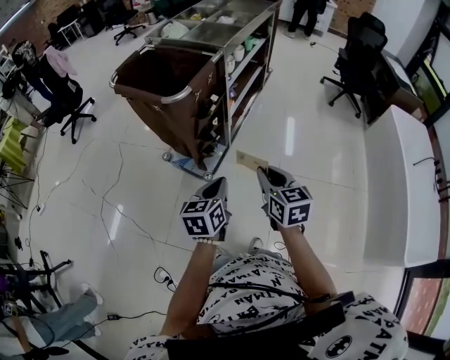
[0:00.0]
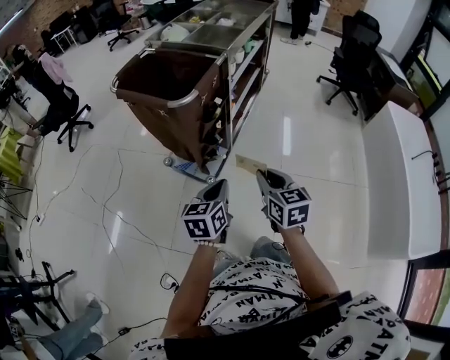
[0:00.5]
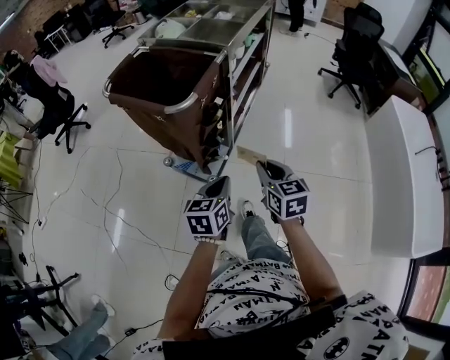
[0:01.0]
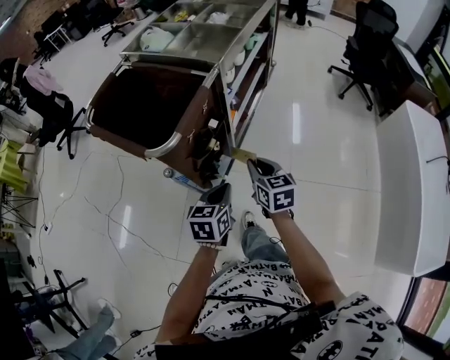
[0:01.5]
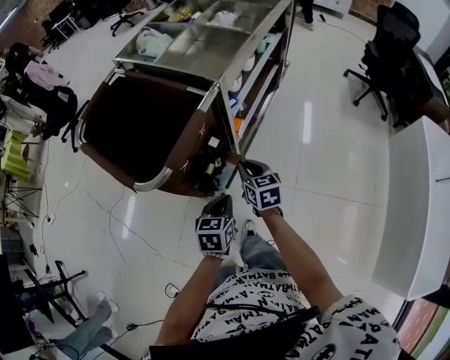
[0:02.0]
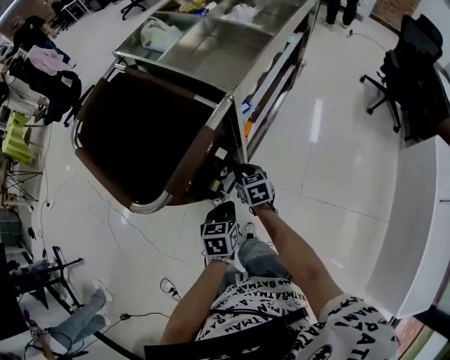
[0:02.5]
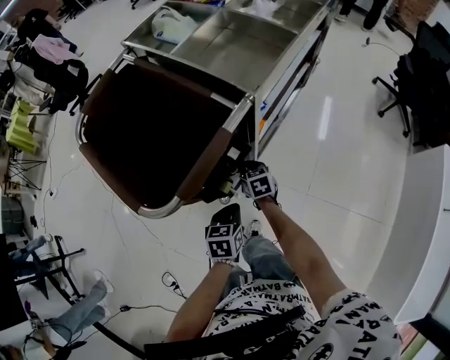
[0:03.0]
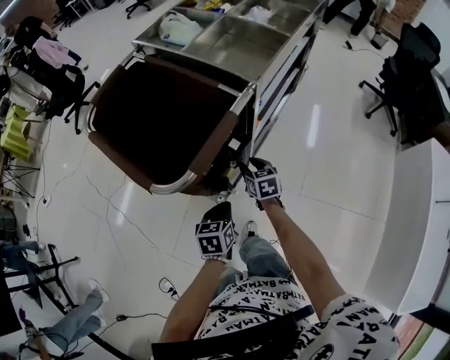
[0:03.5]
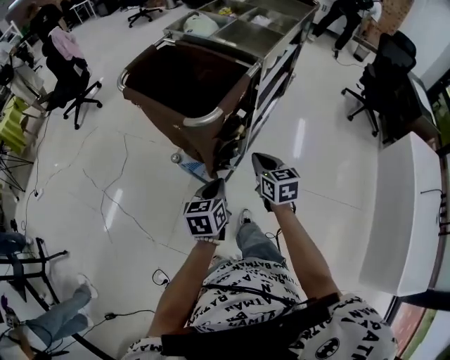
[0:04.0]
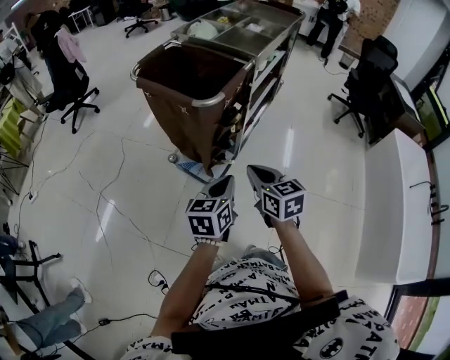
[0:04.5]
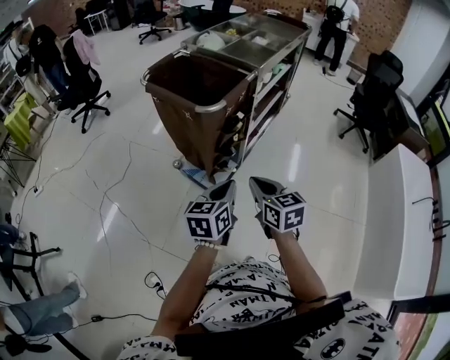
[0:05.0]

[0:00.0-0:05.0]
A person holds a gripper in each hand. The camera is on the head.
0:00.0 to 0:02.5: Both grippers move forward and downward, roughly 40 cm. The left gripper rotates approximately 20 degrees; the right gripper swivels some 20 degrees.
0:02.5 to 0:05.0: Both grippers move backward and upward, some 40 cm. The right gripper opens, then closes once more; the left gripper changes its angle by approximately 30 degrees.

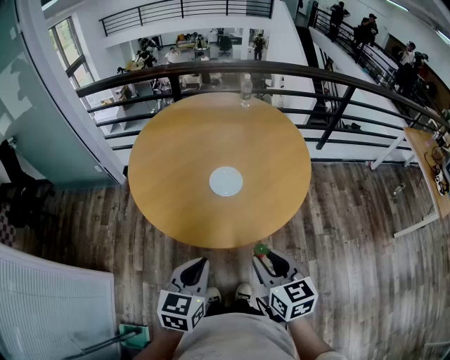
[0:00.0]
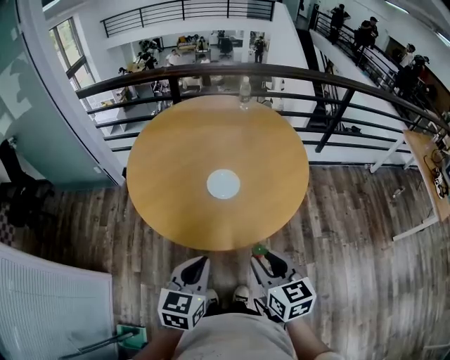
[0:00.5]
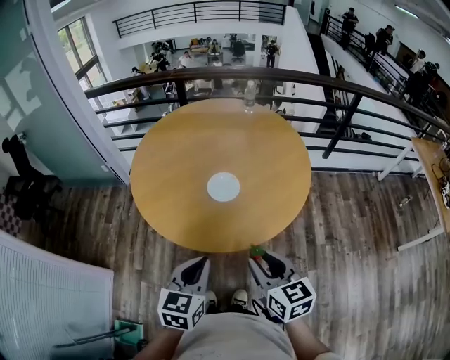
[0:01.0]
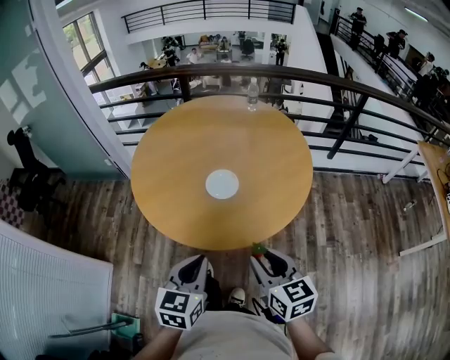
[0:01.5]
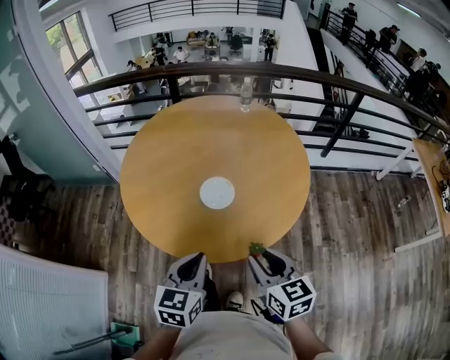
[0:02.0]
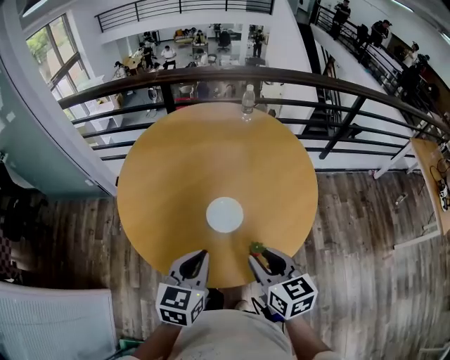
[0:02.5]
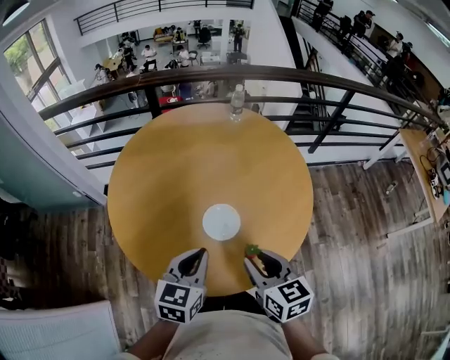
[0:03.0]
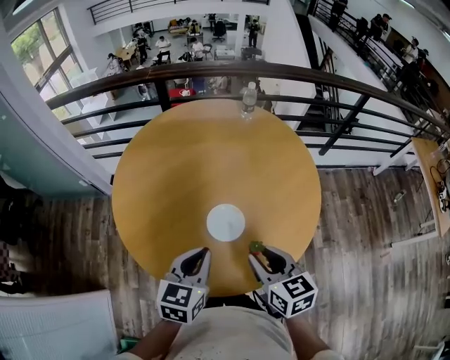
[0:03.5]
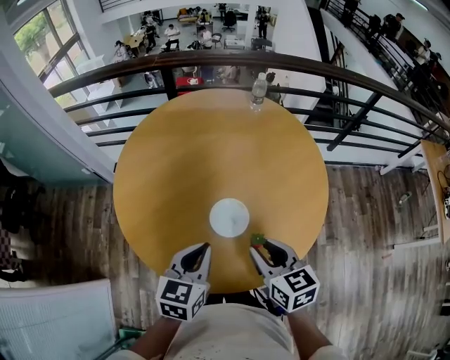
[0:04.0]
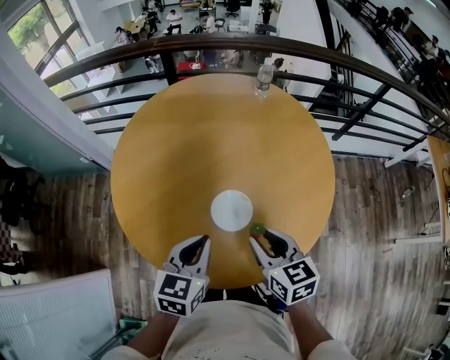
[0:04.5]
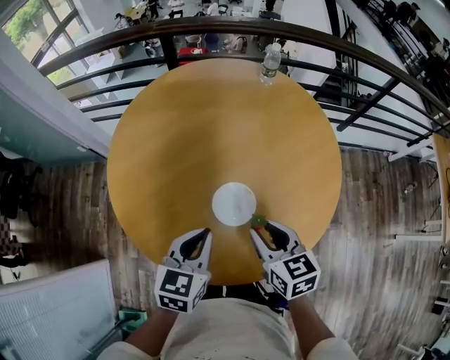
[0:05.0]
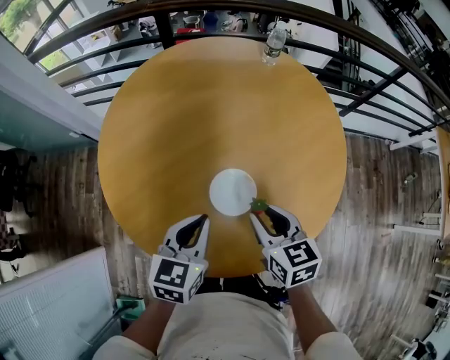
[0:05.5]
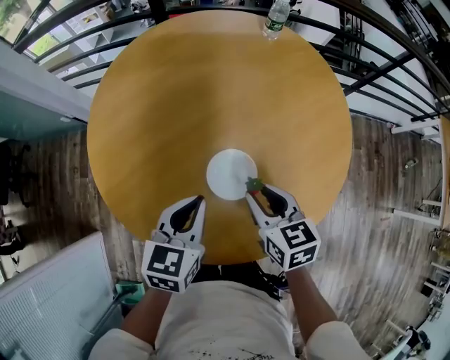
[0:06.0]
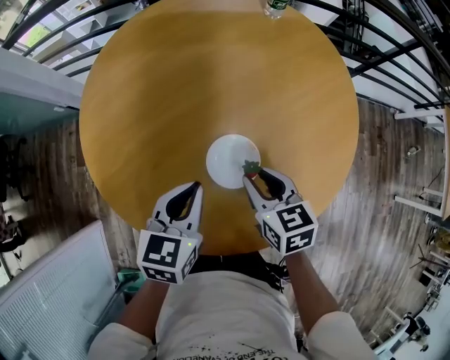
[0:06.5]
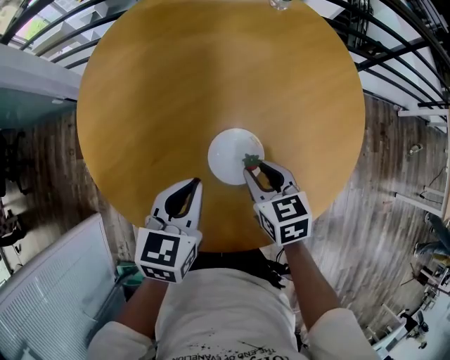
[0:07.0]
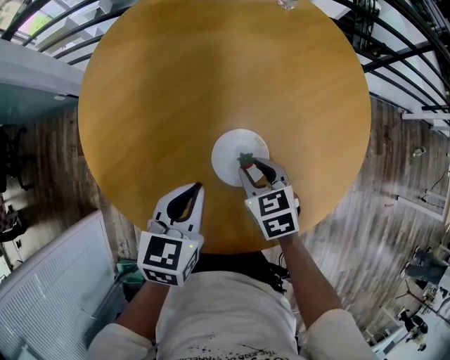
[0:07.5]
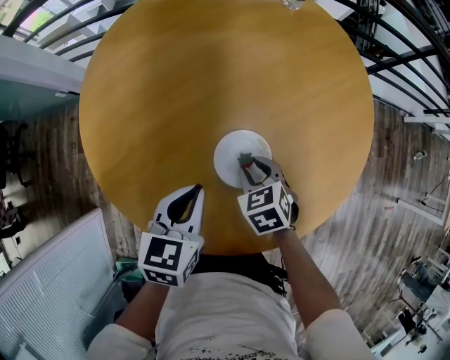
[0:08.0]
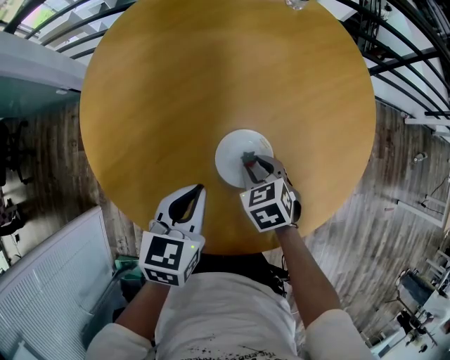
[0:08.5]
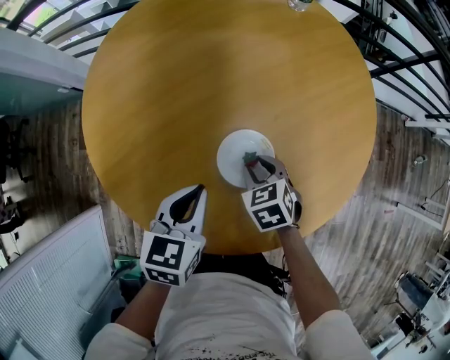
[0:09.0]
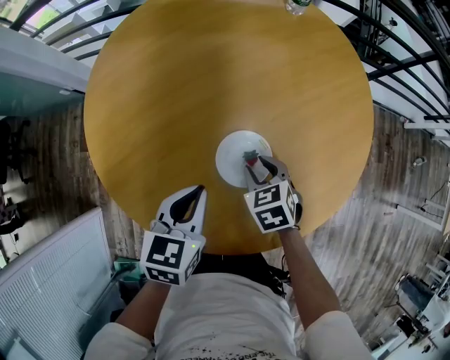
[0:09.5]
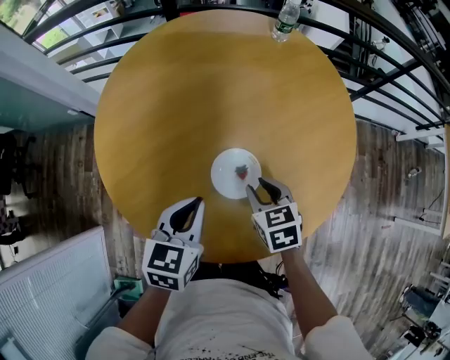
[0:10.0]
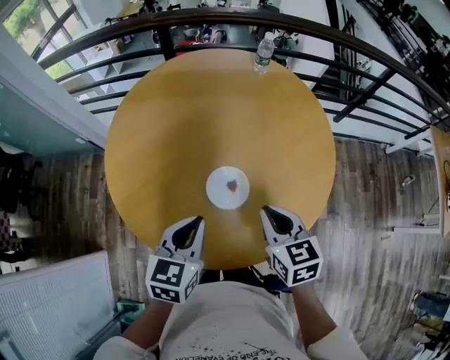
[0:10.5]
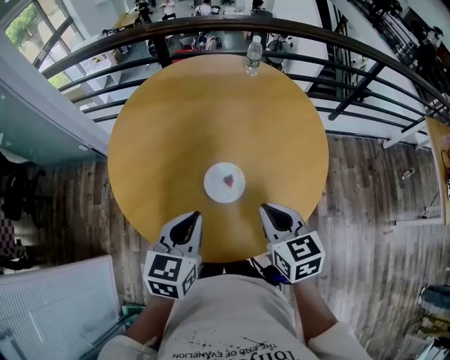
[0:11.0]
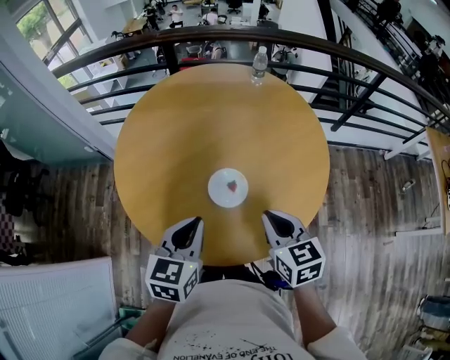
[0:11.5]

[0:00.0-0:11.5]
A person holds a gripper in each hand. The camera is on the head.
0:00.0 to 0:02.0: Both grippers move forward, roughly 5 cm.
0:02.0 to 0:04.0: Both grippers move forward, approximately 15 cm.
0:04.0 to 0:06.0: The left gripper is displaced forward and downward by roughly 10 cm. The right gripper travels downward and forward by approximately 15 cm.
0:06.0 to 0:07.5: The right gripper moves downward, approximately 10 cm.
0:07.5 to 0:09.5: The grippers make only small movements.
0:09.5 to 0:11.5: The right gripper moves upward and backward, approximately 25 cm, changes its angle by approximately 30 degrees, and closes, while the left gripper shifts approximately 15 cm upward and backward.

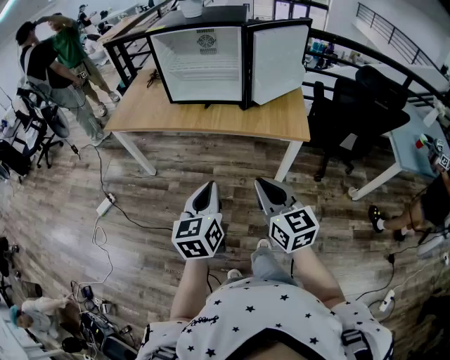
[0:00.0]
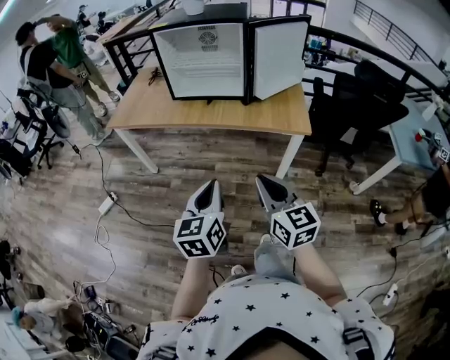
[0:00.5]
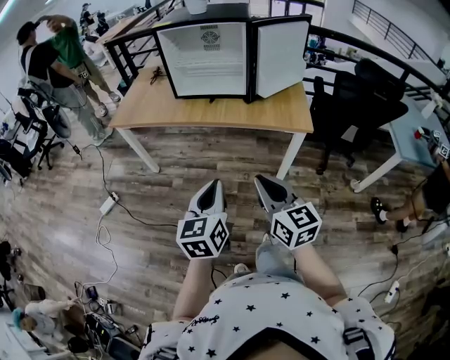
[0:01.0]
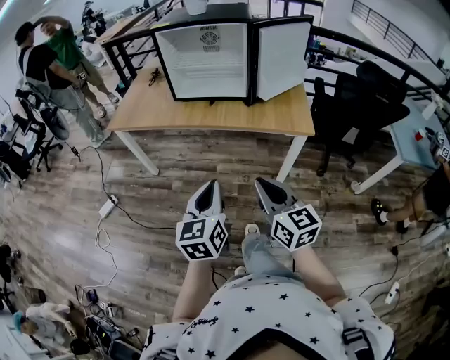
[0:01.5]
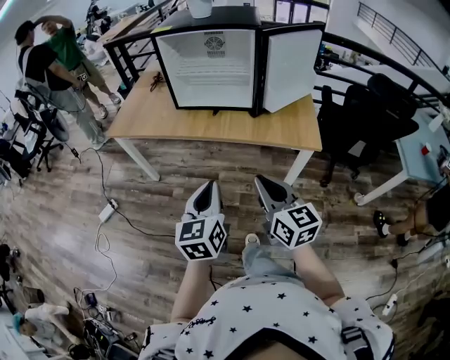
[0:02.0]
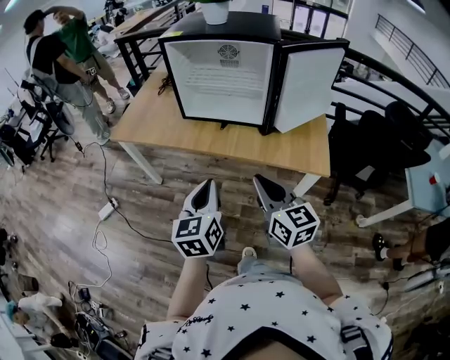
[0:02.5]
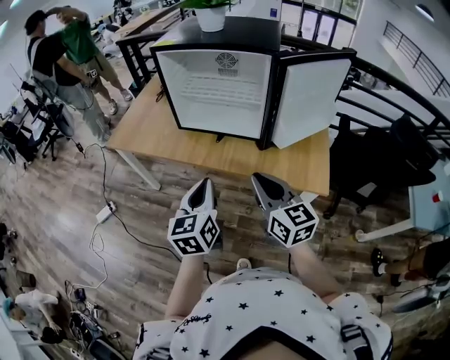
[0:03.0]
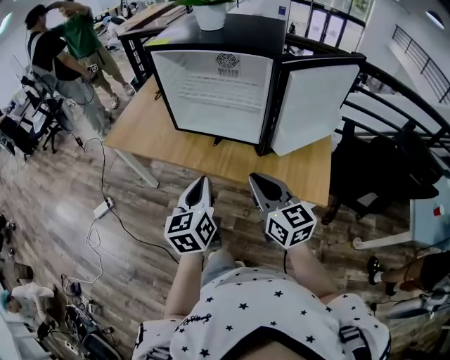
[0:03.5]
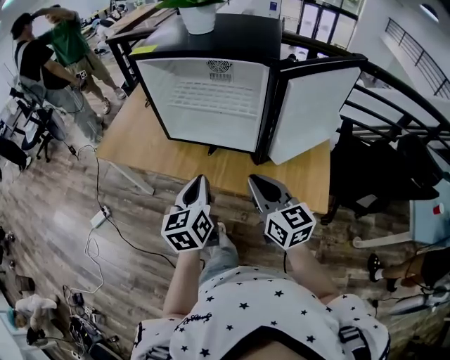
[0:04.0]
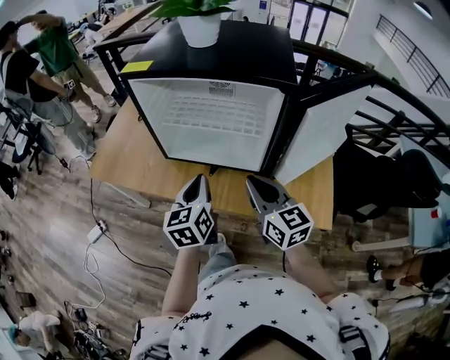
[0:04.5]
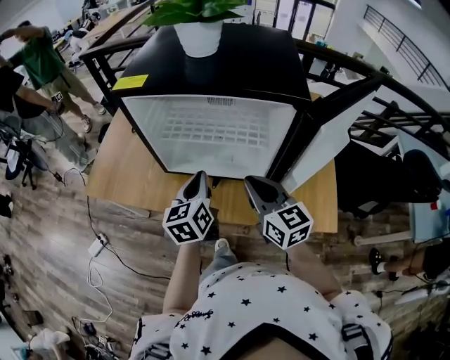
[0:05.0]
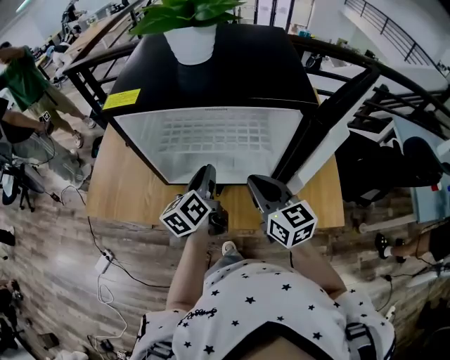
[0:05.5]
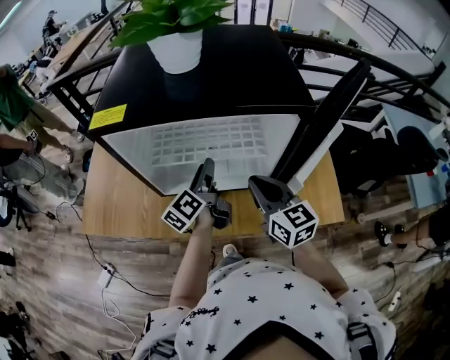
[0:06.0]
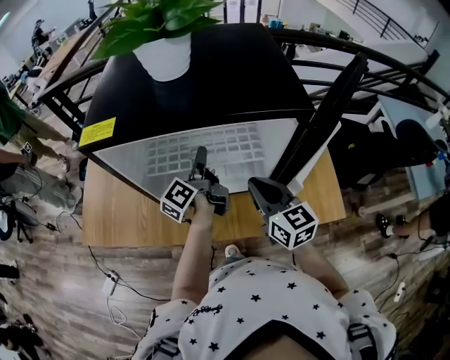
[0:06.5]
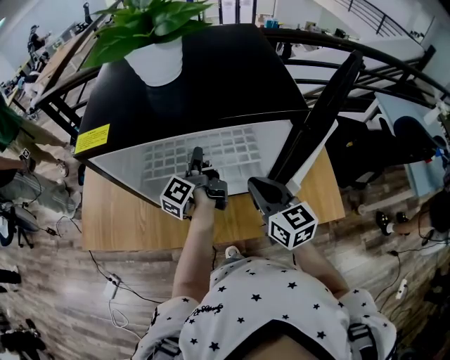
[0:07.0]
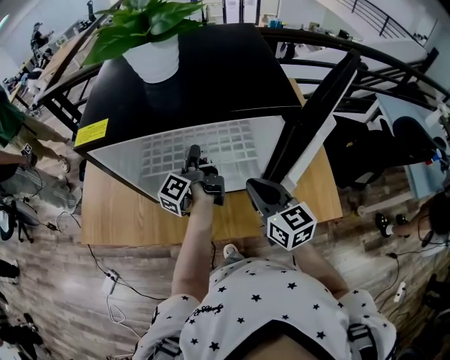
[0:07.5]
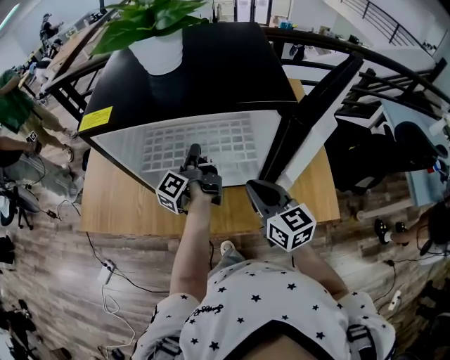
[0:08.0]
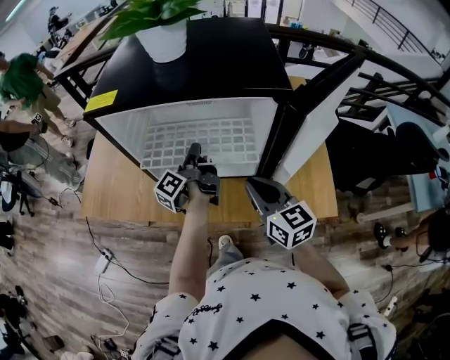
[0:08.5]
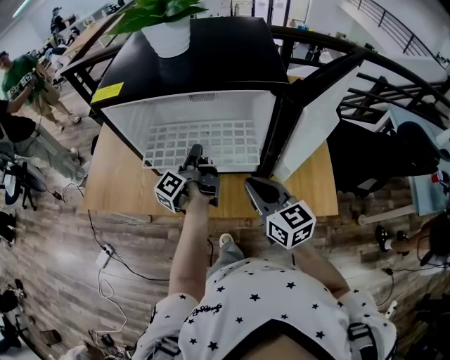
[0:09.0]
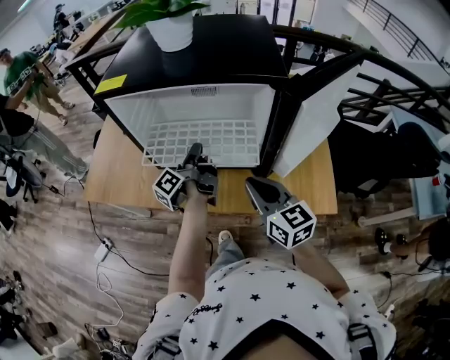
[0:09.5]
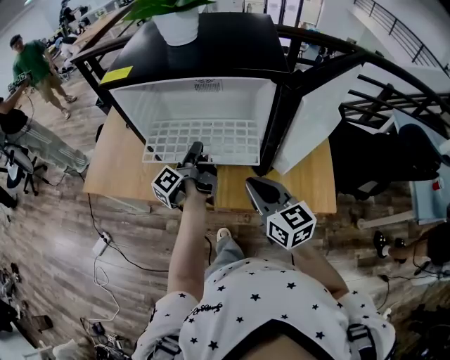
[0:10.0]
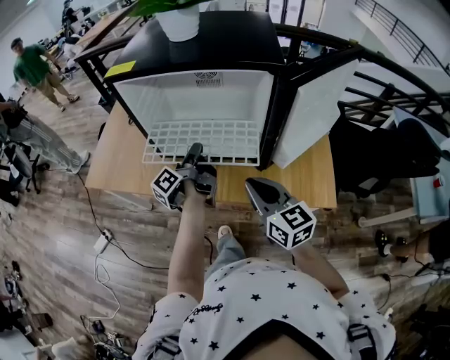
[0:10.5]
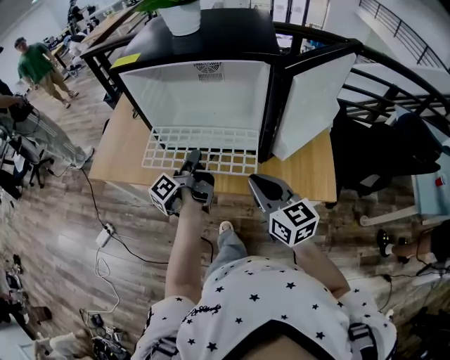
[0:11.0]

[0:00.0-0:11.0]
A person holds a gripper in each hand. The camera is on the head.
0:00.0 to 0:02.0: Both grippers travel together forward, about 5 cm.
0:02.0 to 0:03.5: Both grippers move forward, roughly 20 cm.
0:03.5 to 0:05.5: Both grippers travel together forward, about 25 cm. The left gripper swivels approximately 30 degrees.
0:05.5 to 0:07.5: The left gripper moves forward, about 10 cm, turns by about 40 degrees, and opens, then closes again.
0:07.5 to 0:09.0: The grippers both shift backward by approximately 5 cm.
0:09.0 to 0:11.0: The two grippers go some 10 cm backward.
